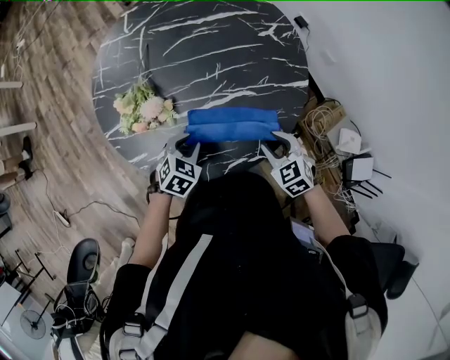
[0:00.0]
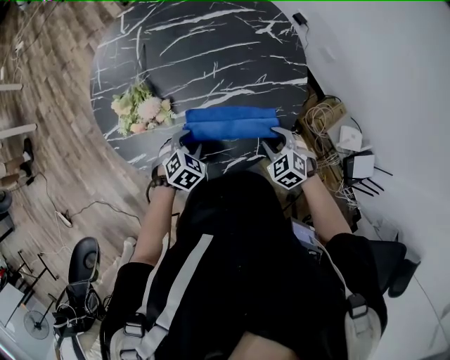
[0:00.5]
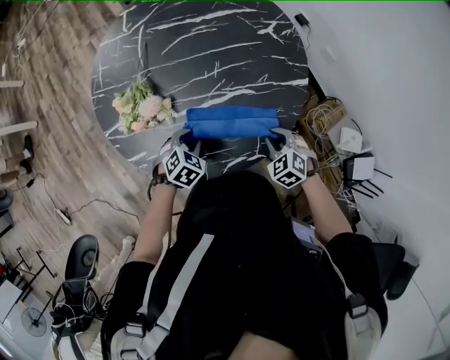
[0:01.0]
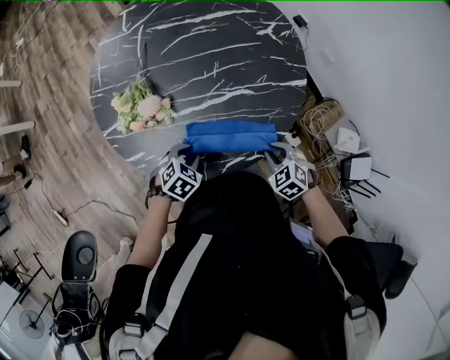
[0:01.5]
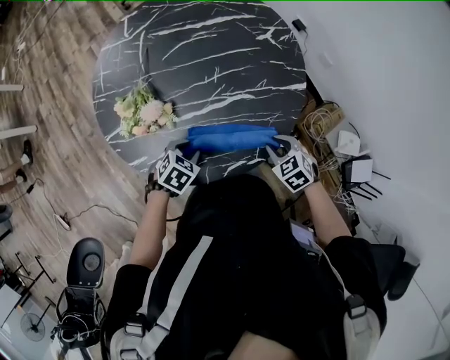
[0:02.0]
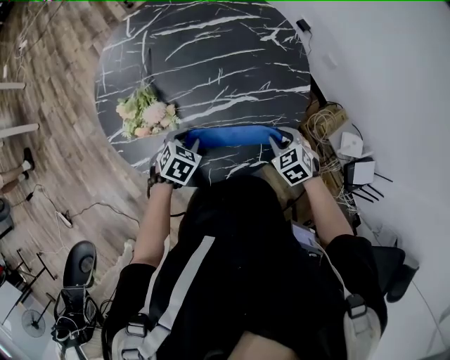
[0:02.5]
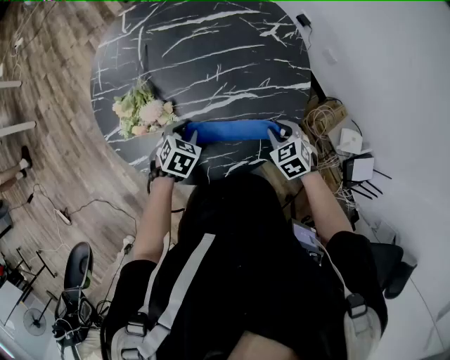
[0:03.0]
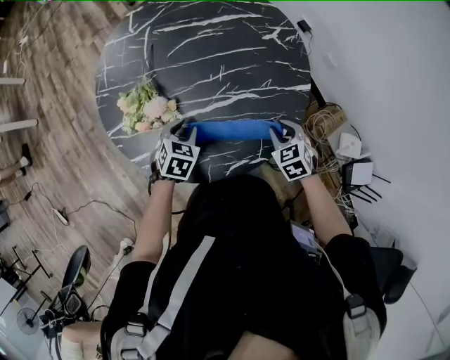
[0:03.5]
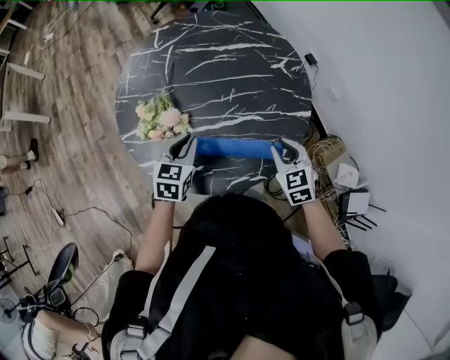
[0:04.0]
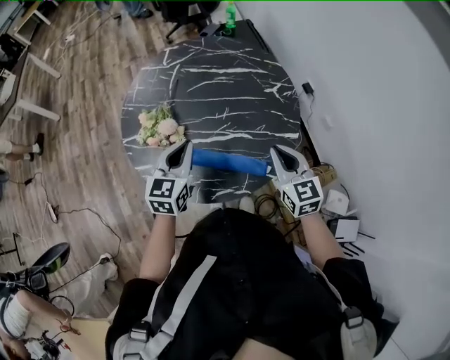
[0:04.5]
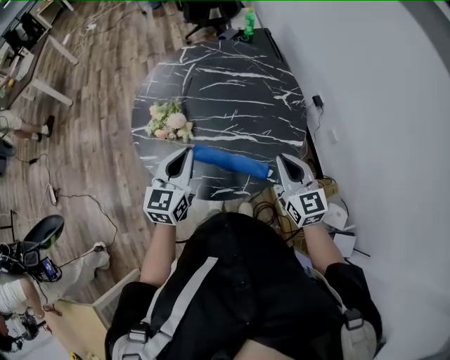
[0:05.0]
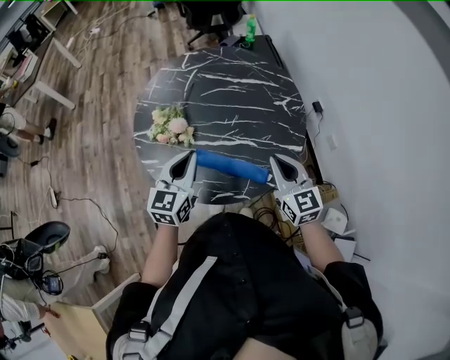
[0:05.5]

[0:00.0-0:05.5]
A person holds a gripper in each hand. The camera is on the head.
2.0 to 3.5 s: The grippers both shift forward by roughly 5 cm.
3.5 to 5.5 s: The grippers both shift upward by about 25 cm. The left gripper tilts its fingers about 40 degrees upward, and closes, while the right gripper tilts its fingers approximately 40 degrees upward, and closes its fingers.

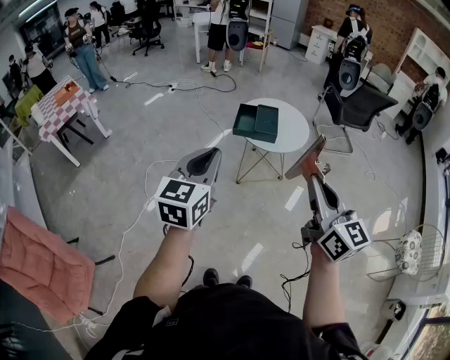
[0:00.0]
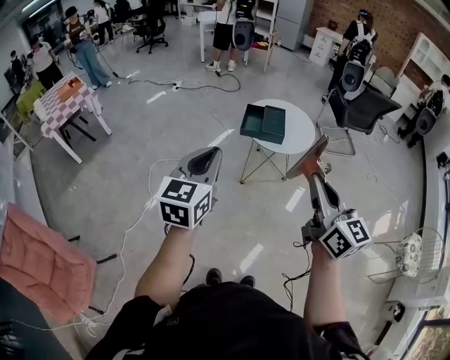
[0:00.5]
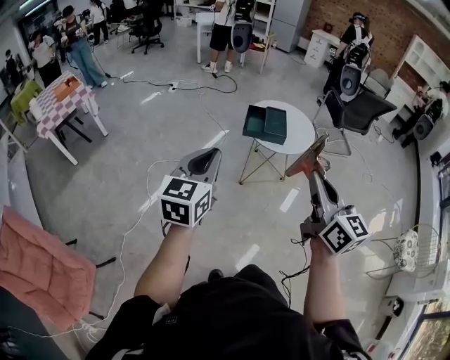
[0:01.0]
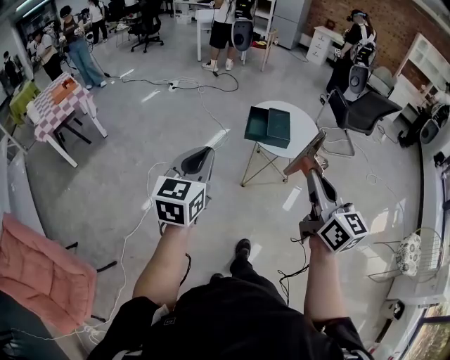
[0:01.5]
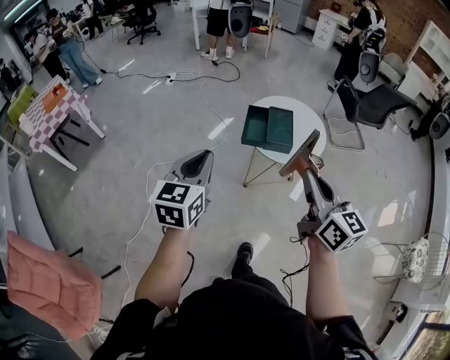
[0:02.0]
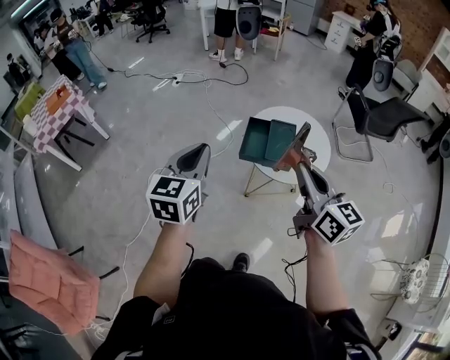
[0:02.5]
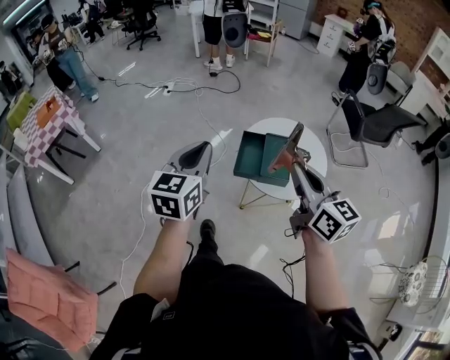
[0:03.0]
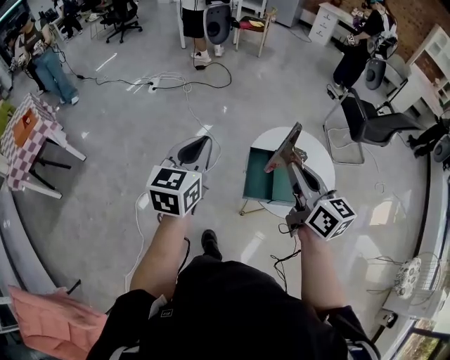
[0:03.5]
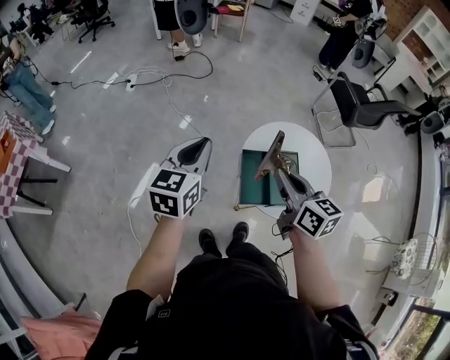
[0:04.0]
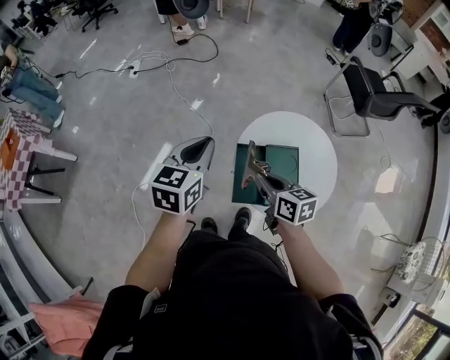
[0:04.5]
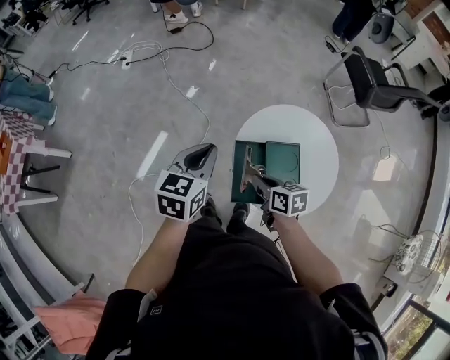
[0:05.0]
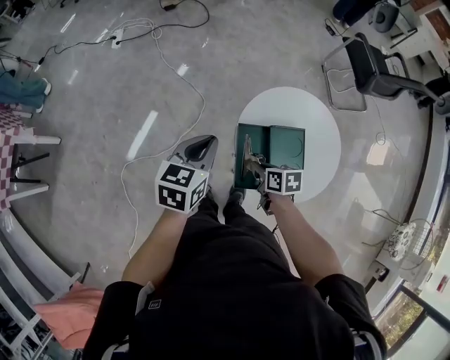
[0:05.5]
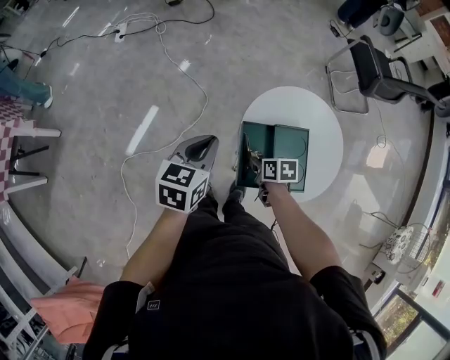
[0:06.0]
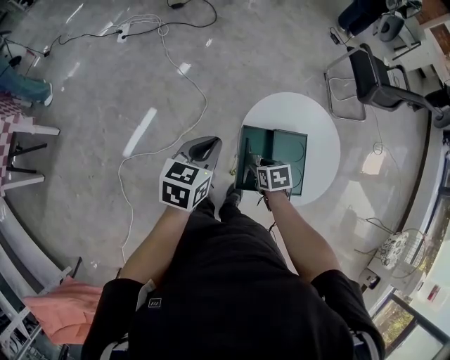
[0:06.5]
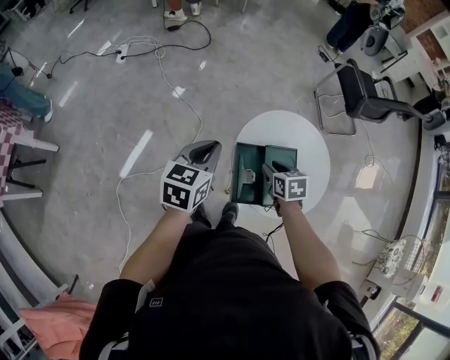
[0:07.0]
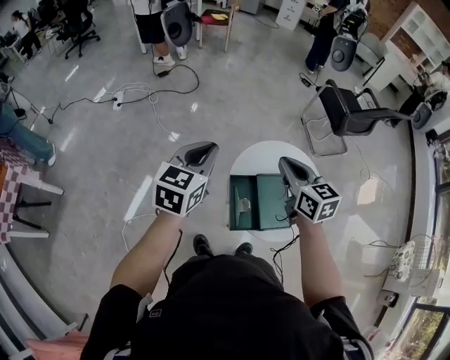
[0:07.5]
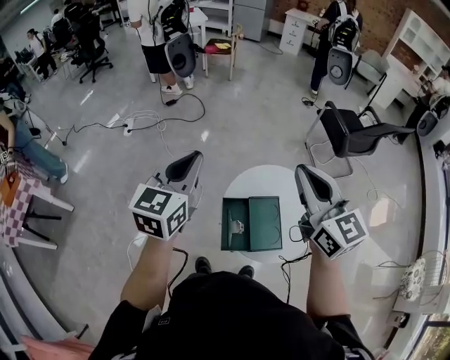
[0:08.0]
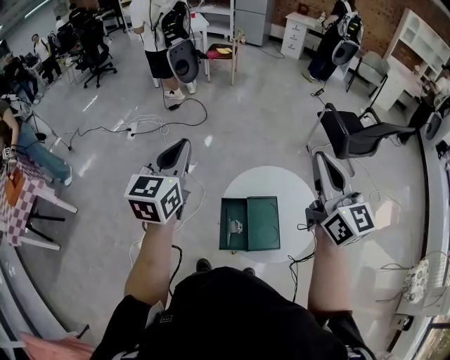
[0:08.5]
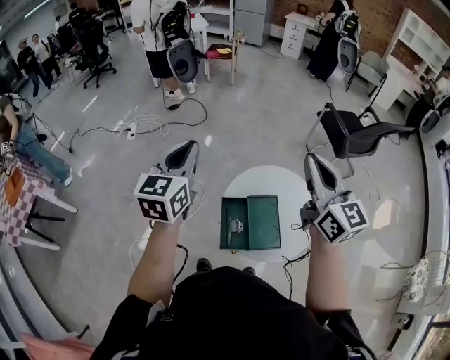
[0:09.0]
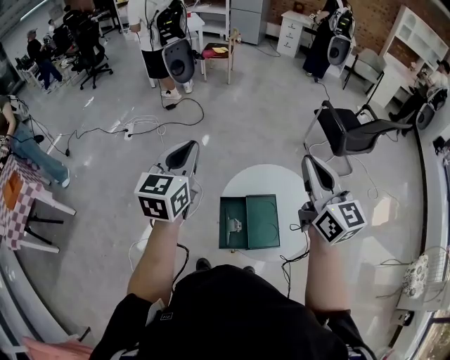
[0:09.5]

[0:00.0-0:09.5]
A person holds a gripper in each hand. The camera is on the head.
0.0 to 2.0 s: The right gripper shifts some 20 cm forward; the left gripper travels forward and downward by some 20 cm.
2.0 to 4.0 s: The two grippers go about 40 cm forward.
4.0 to 5.5 s: The right gripper goes roughly 30 cm downward, and tips its fingers downward by approximately 30 degrees; the left gripper shifts about 15 cm downward and to the right.
5.5 to 7.5 s: The left gripper travels upward and forward by about 15 cm. The right gripper travels upward by some 30 cm, turns by approximately 40 degrees, and opens, then closes again.
7.5 to 9.5 s: The right gripper heads upward and to the right, covering some 20 cm, and rotates about 30 degrees. Meanwhile the left gripper moves upward, about 10 cm.

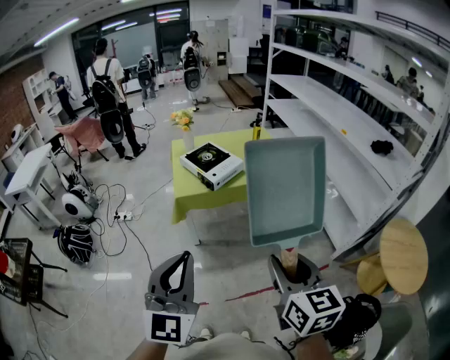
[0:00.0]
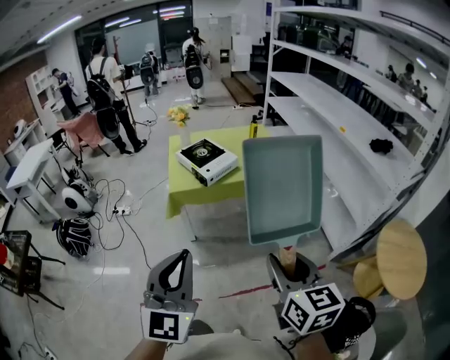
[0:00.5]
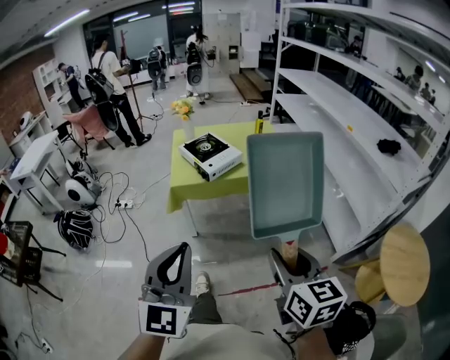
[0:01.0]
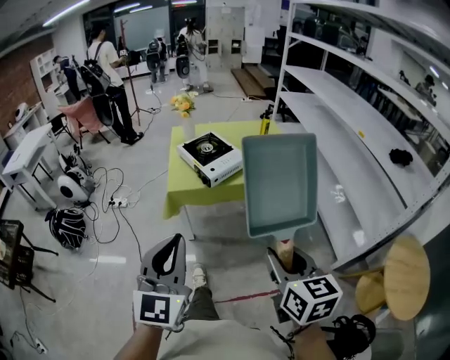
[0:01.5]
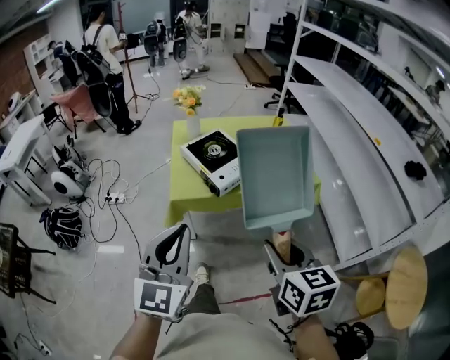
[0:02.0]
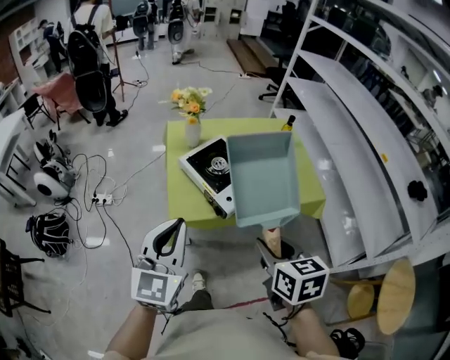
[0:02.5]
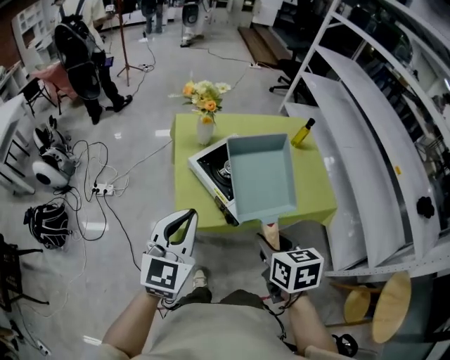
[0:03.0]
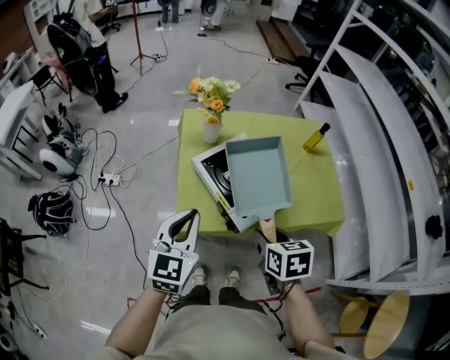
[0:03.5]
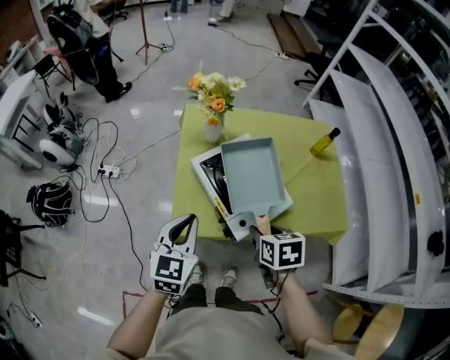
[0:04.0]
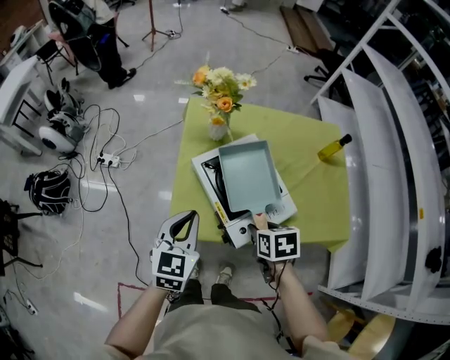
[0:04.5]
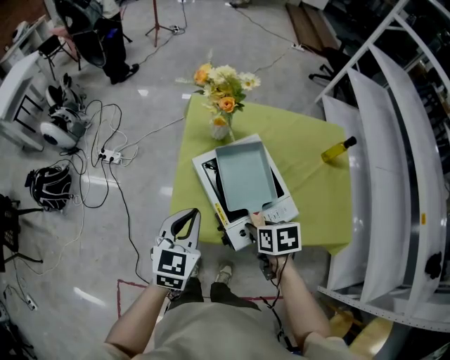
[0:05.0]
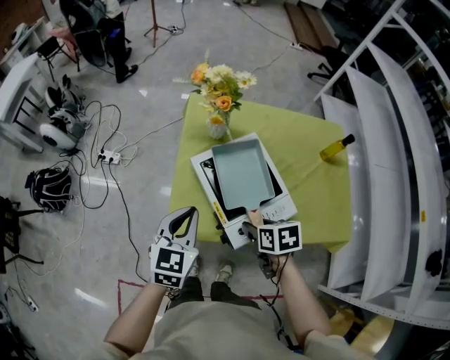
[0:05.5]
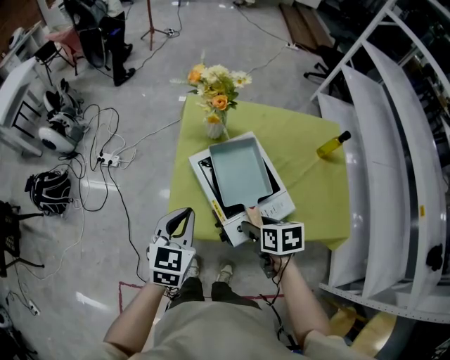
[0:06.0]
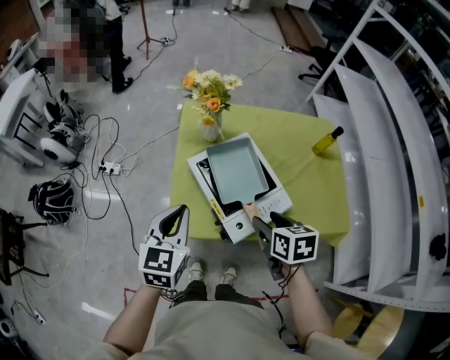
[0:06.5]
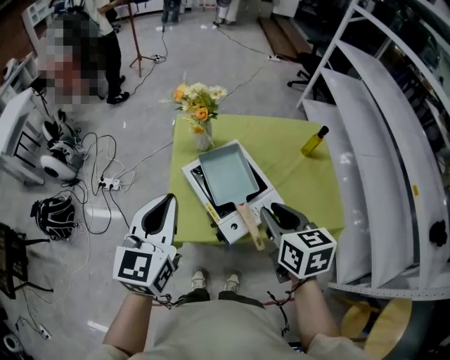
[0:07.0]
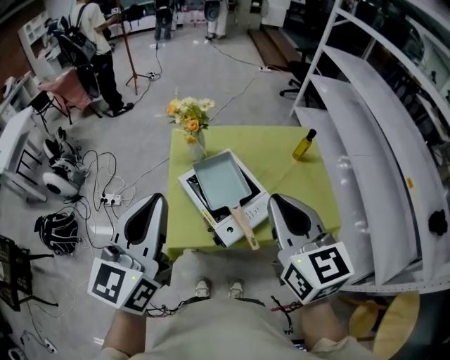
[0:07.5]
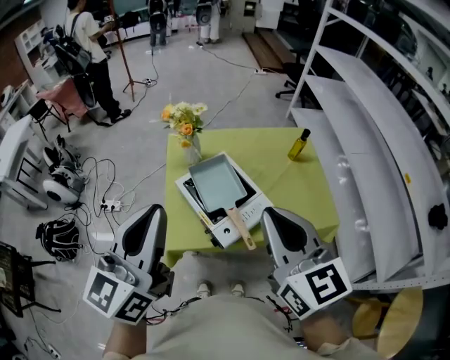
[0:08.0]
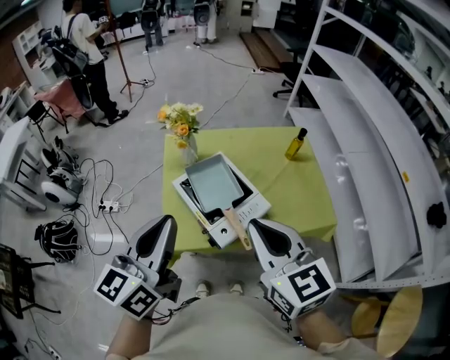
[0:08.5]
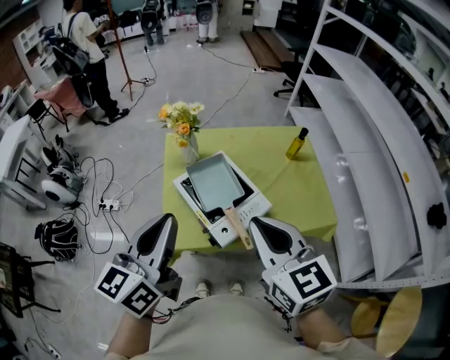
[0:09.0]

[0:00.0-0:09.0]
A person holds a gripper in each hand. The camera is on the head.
0.0 to 2.0 s: The two grippers go roughly 25 cm forward.
2.0 to 4.5 s: The grippers both shift forward and downward by about 50 cm. The right gripper tips its fingers downward by roughly 40 degrees. The left gripper rotates approximately 30 degrees.
4.5 to 7.0 s: Both grippers move upward, some 15 cm. The right gripper changes its angle by approximately 30 degrees, and opens and closes again.
7.0 to 9.0 s: The right gripper goes some 15 cm upward and backward, rotates approximately 20 degrees, and closes up. Meanwhile the left gripper goes roughly 10 cm upward and backward, and rotates about 20 degrees.

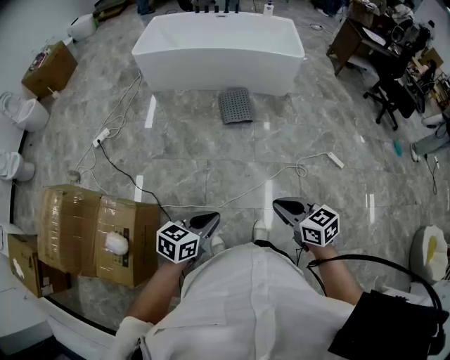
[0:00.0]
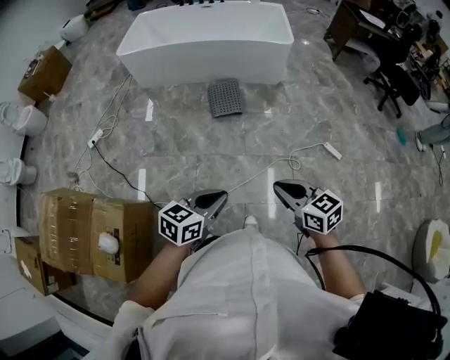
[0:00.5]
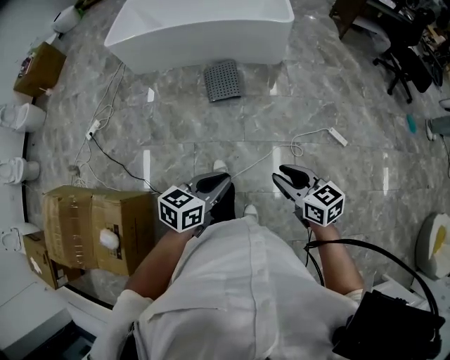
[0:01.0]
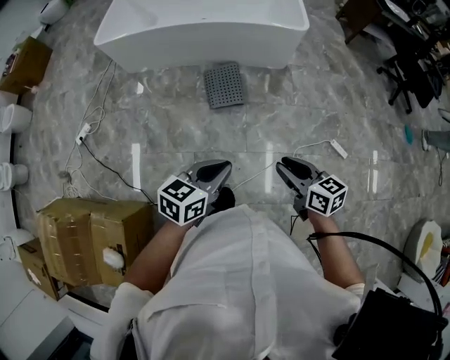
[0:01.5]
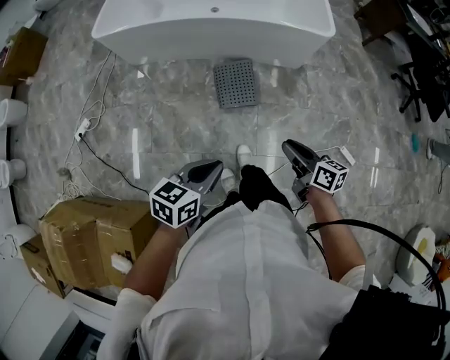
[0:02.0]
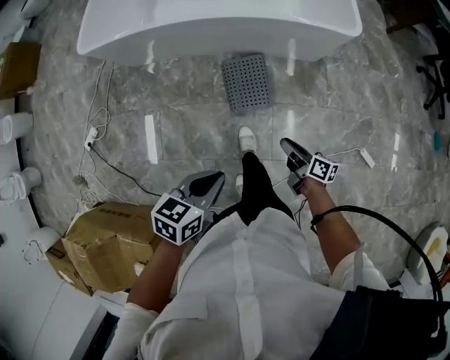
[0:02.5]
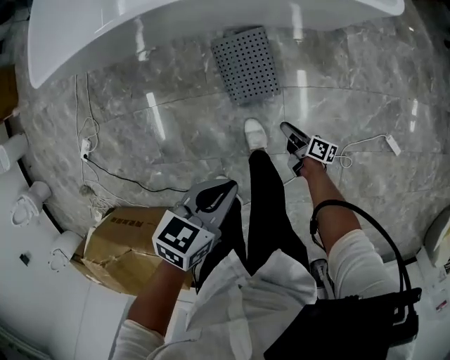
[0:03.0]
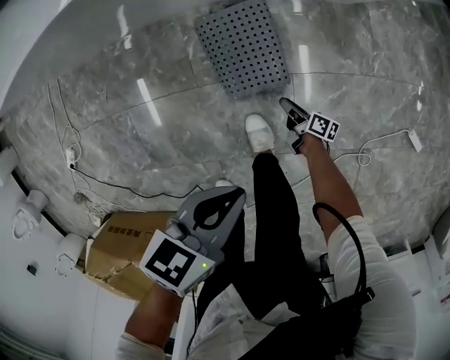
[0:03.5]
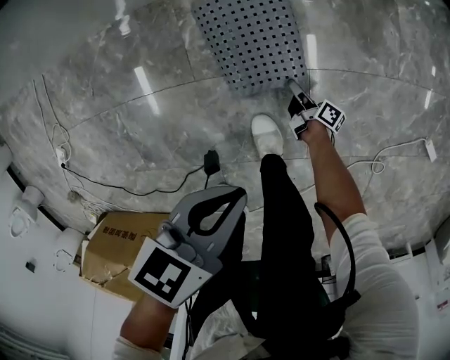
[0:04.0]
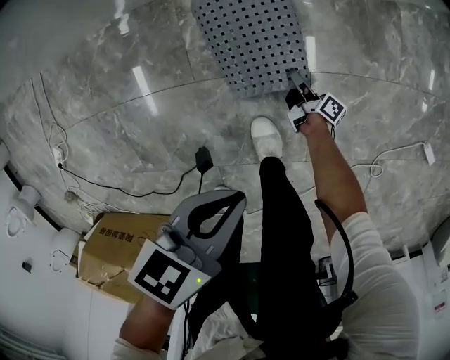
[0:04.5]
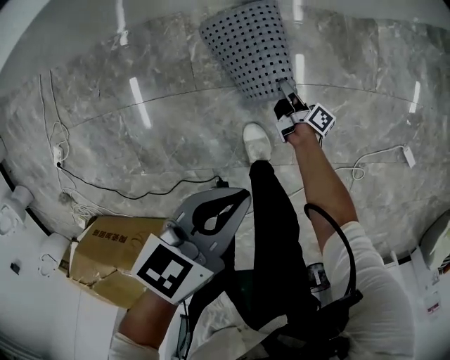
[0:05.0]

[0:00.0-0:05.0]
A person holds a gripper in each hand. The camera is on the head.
0.0 to 2.5 s: The two grippers travel together, forward, some 60 cm. The right gripper is displaced downward by some 30 cm, rolls clockwise, seen from behind, by about 50 degrees, and opens up.
2.5 to 5.0 s: The right gripper moves downward, about 50 cm, and rotates roughly 30 degrees. The left gripper heads downward and forward, covering about 35 cm.
